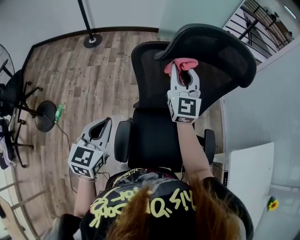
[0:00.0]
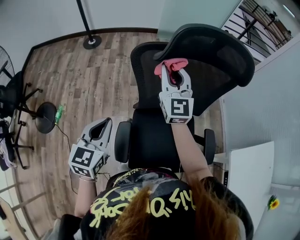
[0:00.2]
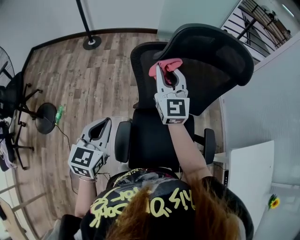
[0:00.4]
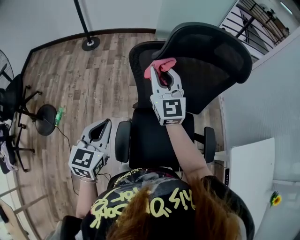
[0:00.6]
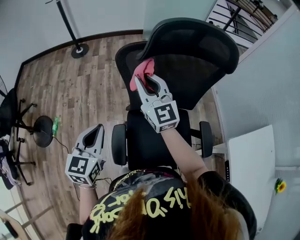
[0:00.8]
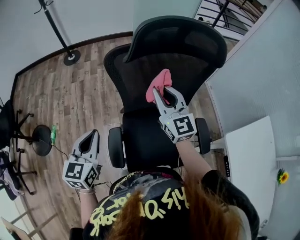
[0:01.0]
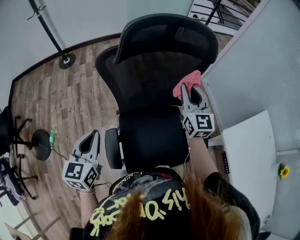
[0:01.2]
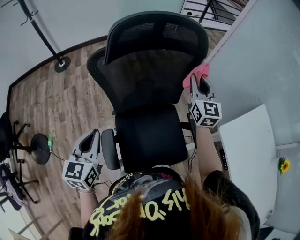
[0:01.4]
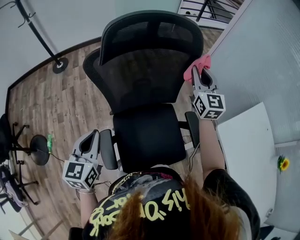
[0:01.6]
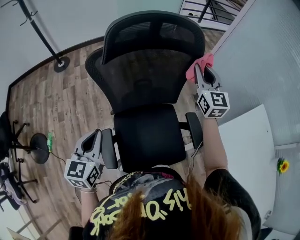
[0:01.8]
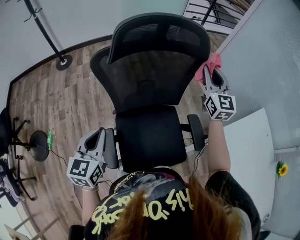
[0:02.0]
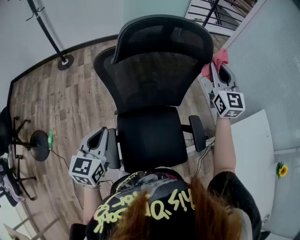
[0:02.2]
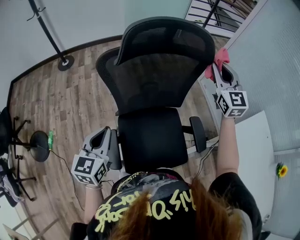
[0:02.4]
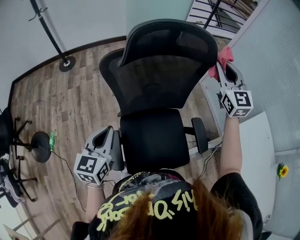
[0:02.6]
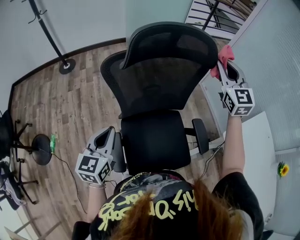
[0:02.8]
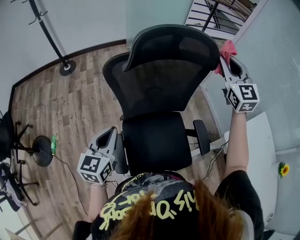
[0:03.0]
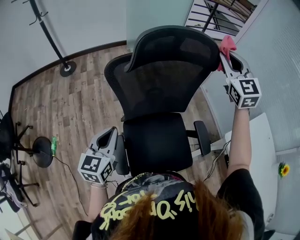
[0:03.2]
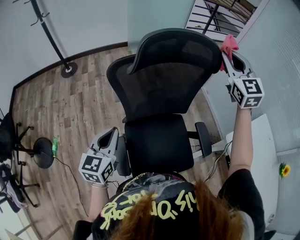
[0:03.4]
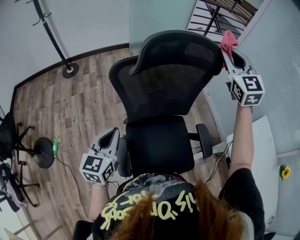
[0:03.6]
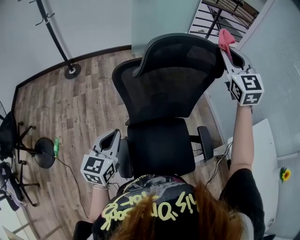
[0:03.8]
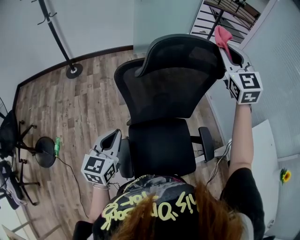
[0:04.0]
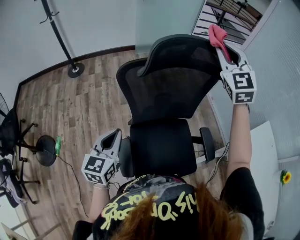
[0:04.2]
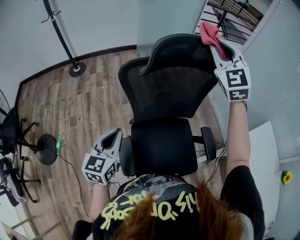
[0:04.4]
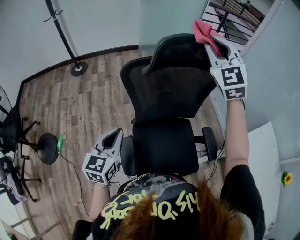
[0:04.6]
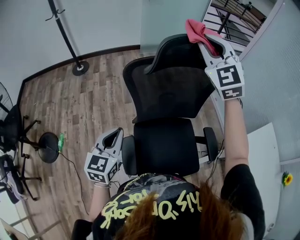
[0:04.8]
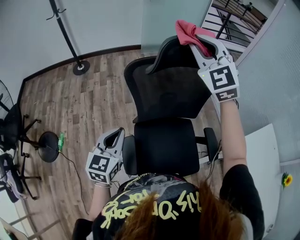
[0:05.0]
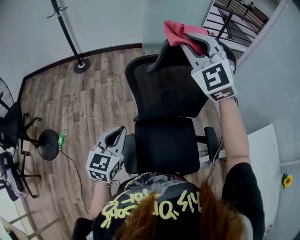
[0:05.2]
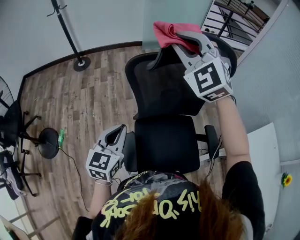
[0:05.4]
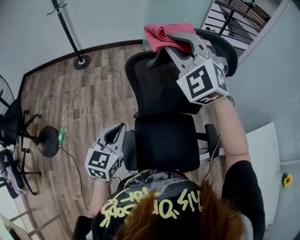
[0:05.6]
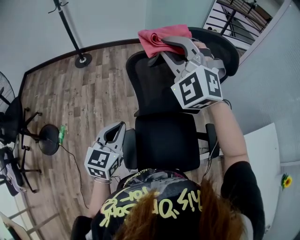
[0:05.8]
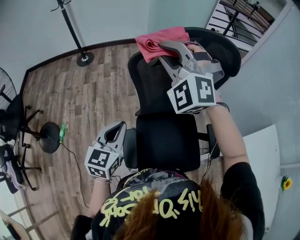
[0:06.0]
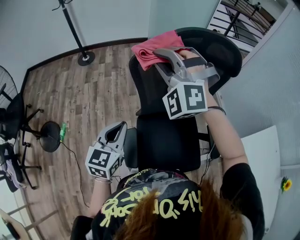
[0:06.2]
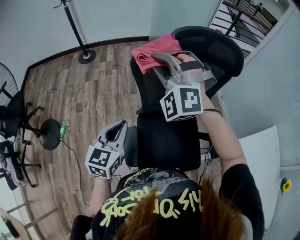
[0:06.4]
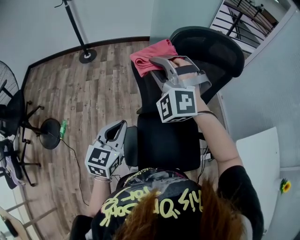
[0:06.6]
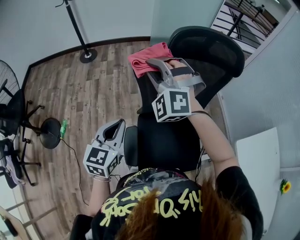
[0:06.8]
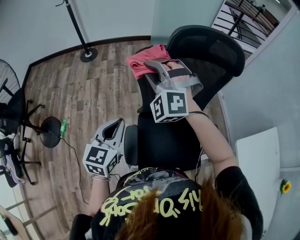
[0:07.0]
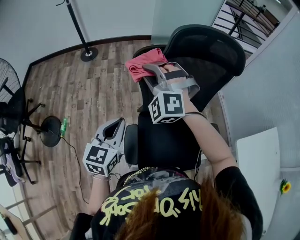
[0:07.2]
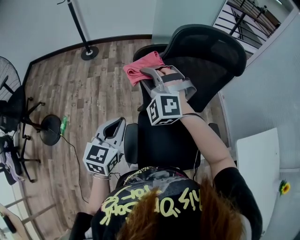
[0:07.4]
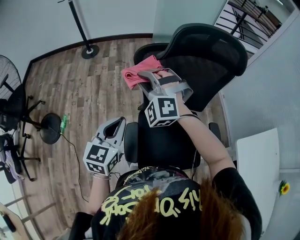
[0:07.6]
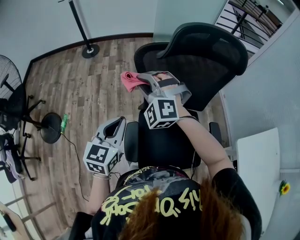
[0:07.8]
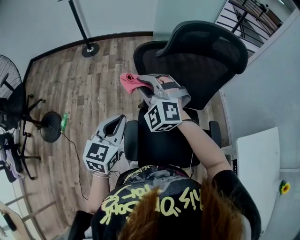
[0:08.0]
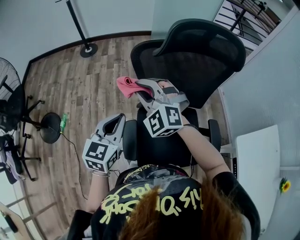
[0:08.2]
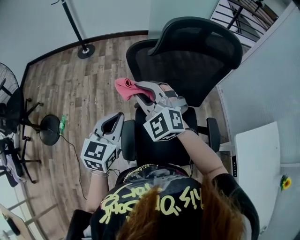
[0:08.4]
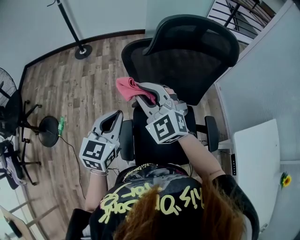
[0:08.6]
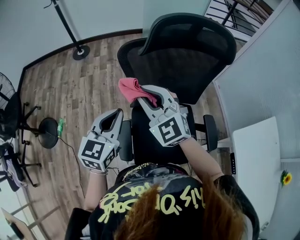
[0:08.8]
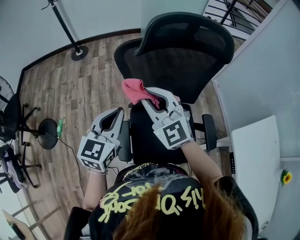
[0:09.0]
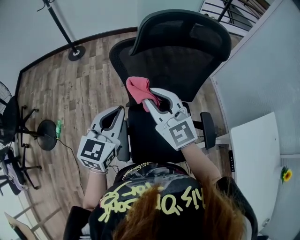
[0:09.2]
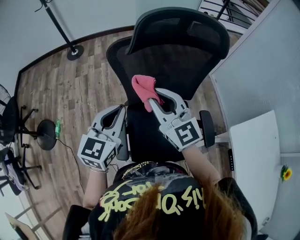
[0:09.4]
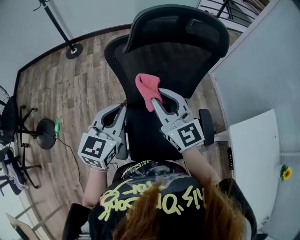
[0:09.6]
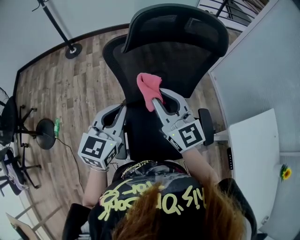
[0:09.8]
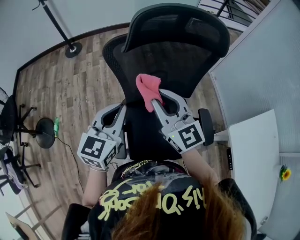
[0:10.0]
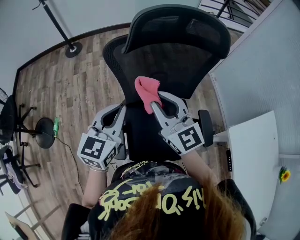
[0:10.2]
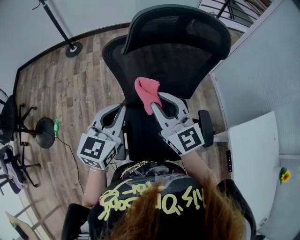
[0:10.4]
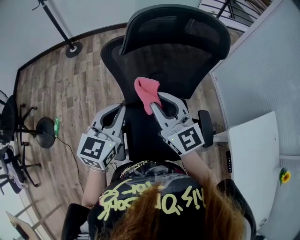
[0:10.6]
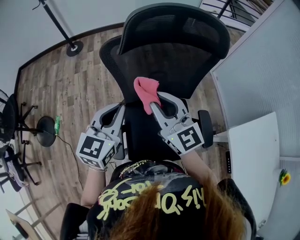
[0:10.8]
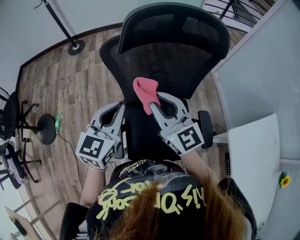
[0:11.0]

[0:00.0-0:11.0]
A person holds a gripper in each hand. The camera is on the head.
0:00.0 to 0:01.6: The left gripper heads to the right, covering some 5 cm. The right gripper goes approximately 25 cm to the right.
0:01.6 to 0:03.2: The right gripper shifts approximately 15 cm upward, and turns by about 20 degrees.
0:03.2 to 0:04.8: The right gripper travels to the left by some 15 cm.
0:04.8 to 0:06.2: The right gripper heads to the left and downward, covering some 20 cm, and rotates some 40 degrees.
0:06.2 to 0:07.8: The right gripper goes approximately 15 cm downward and to the left.
0:07.8 to 0:09.4: The left gripper is displaced to the right by roughly 10 cm. Meanwhile the right gripper is displaced to the right and backward by roughly 15 cm, and twists some 60 degrees clockwise, seen from behind.
0:09.4 to 0:11.0: There are only small adjustments of the grippers.

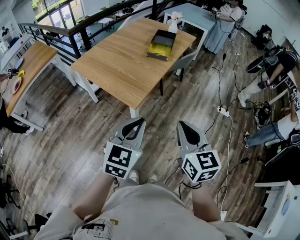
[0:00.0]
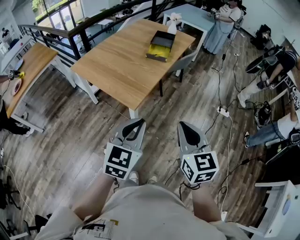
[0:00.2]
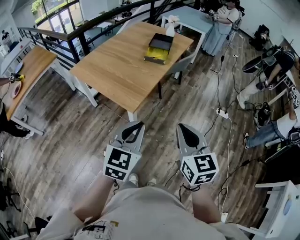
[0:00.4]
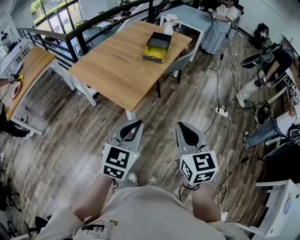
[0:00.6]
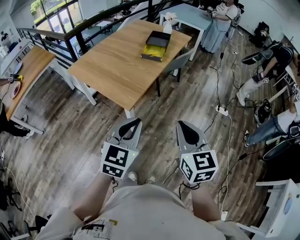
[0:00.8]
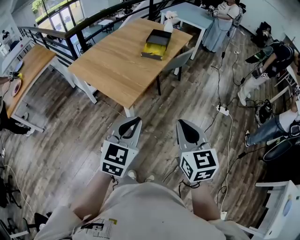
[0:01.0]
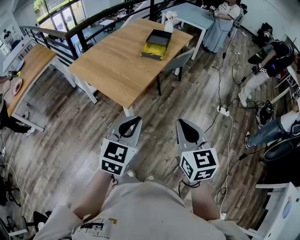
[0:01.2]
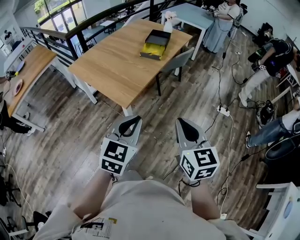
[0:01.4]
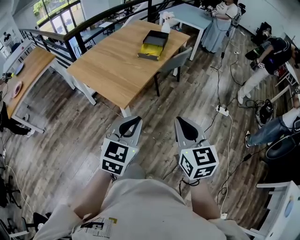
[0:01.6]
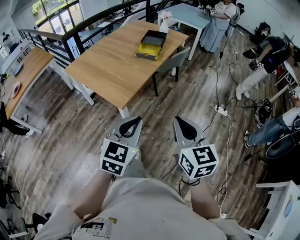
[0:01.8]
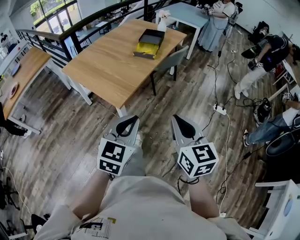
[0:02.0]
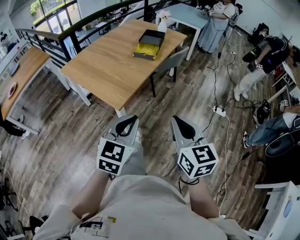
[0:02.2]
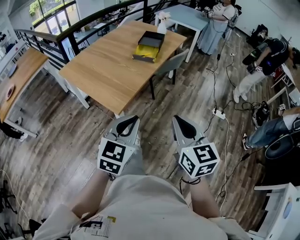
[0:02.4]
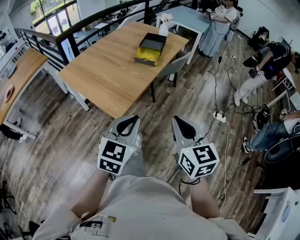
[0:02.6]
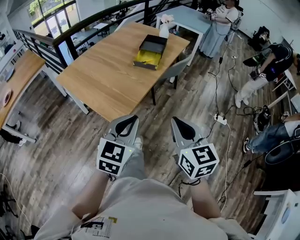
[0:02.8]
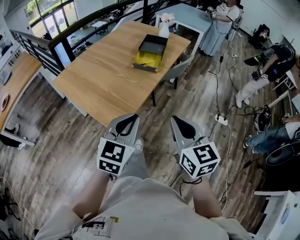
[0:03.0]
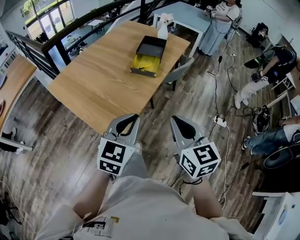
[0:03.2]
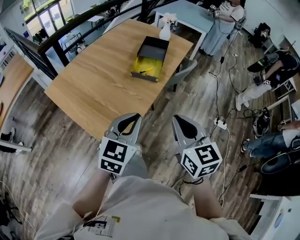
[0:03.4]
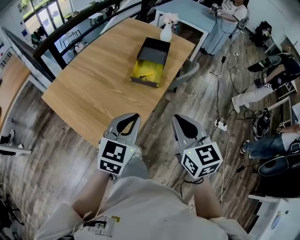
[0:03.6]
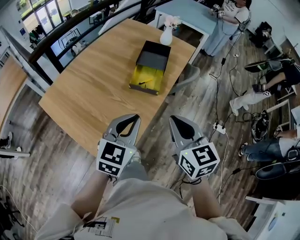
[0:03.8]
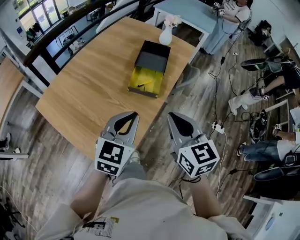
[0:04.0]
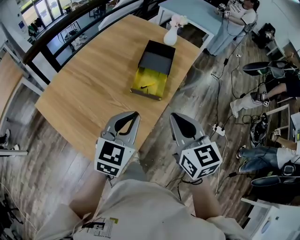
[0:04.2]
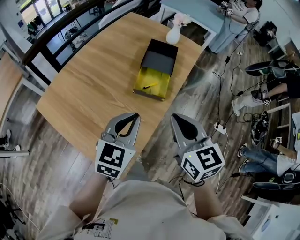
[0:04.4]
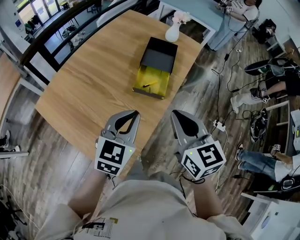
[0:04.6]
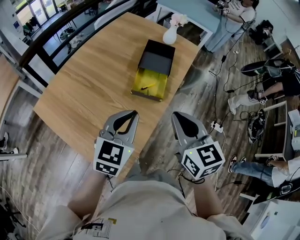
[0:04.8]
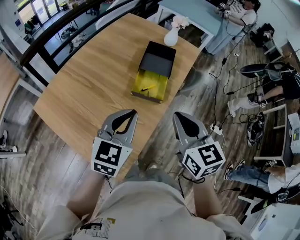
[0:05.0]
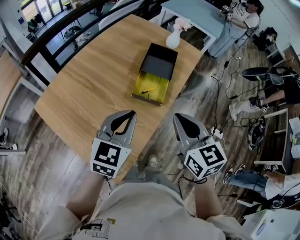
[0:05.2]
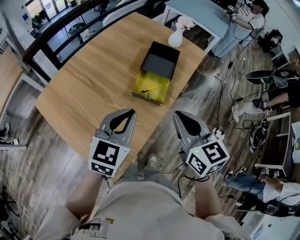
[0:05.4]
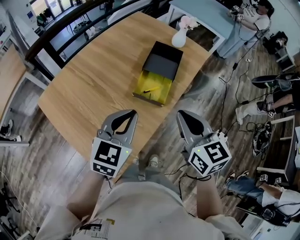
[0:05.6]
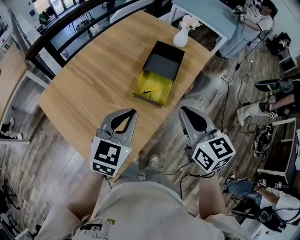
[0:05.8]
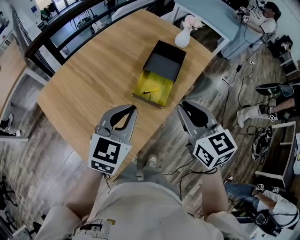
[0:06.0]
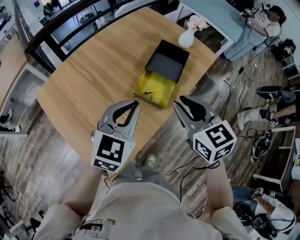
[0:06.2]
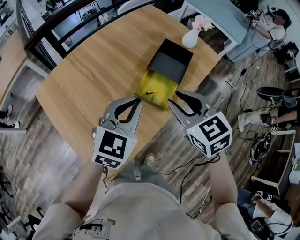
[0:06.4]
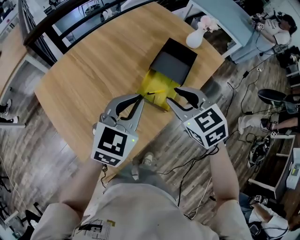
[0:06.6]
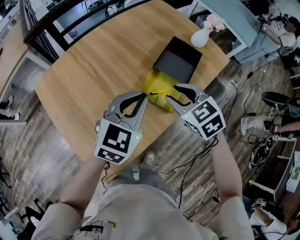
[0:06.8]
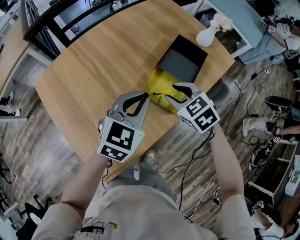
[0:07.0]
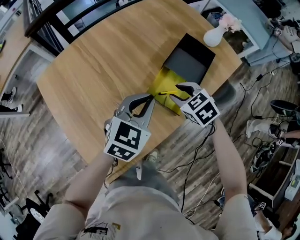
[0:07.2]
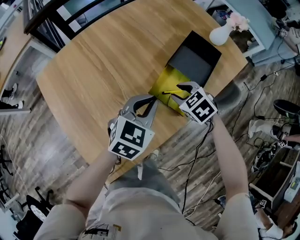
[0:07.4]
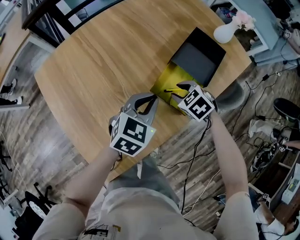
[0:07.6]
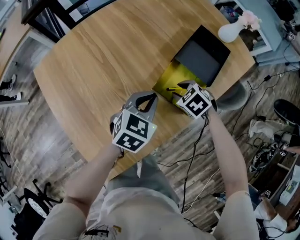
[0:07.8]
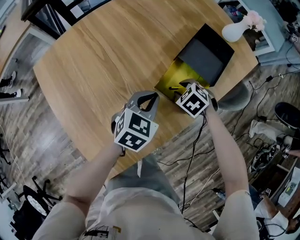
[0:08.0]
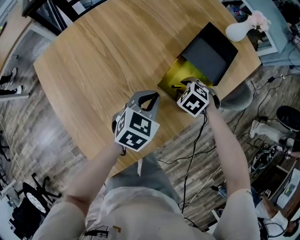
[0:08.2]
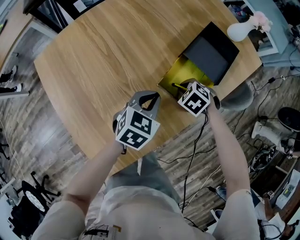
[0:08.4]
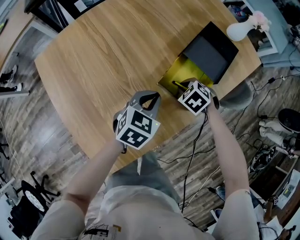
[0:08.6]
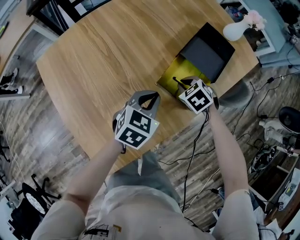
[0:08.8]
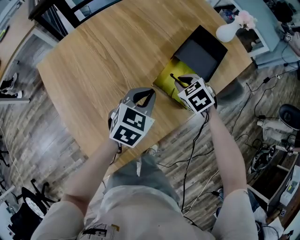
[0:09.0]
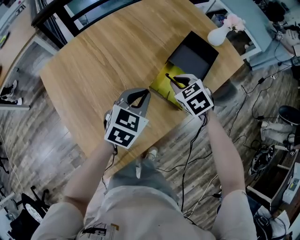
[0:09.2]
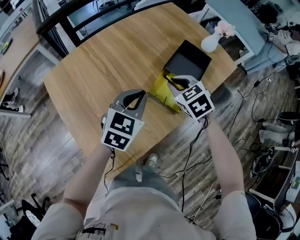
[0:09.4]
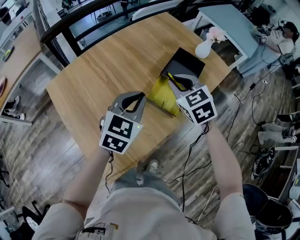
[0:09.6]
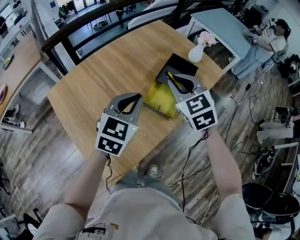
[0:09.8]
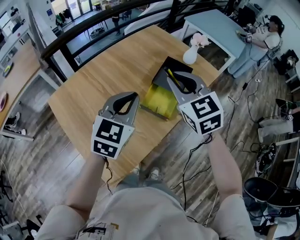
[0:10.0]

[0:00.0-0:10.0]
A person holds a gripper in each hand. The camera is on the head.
0:00.0 to 0:01.4: Both grippers travel together to the right, about 10 cm.
0:01.4 to 0:02.8: Both grippers travel together forward, approximately 15 cm.
0:02.8 to 0:04.2: The two grippers travel together, forward, some 40 cm.
0:04.2 to 0:05.8: The grippers both shift forward by some 10 cm.
0:05.8 to 0:07.2: The left gripper moves forward and downward, approximately 20 cm. Meanwhile the right gripper moves downward and forward, some 30 cm, points its fingers roughly 40 degrees further downward, and opens.
0:07.2 to 0:08.6: The two grippers go approximately 15 cm downward. The right gripper changes its angle by approximately 20 degrees, and closes its fingers.
0:08.6 to 0:10.0: Both grippers travel together upward, roughly 40 cm. The right gripper tips its fingers upward by roughly 50 degrees. The left gripper rotates roughly 30 degrees.

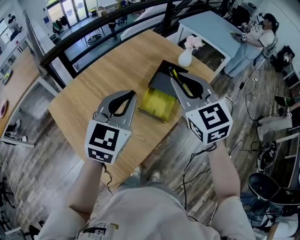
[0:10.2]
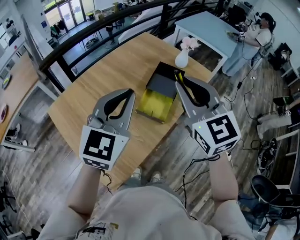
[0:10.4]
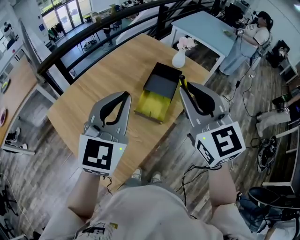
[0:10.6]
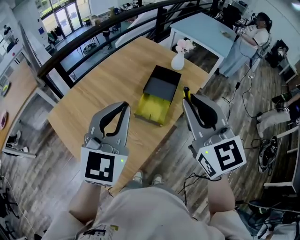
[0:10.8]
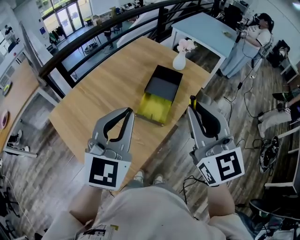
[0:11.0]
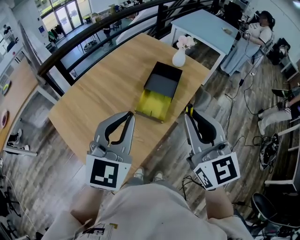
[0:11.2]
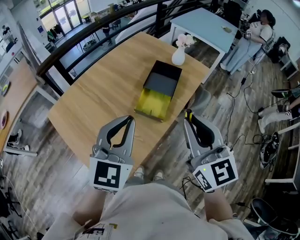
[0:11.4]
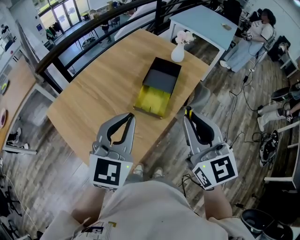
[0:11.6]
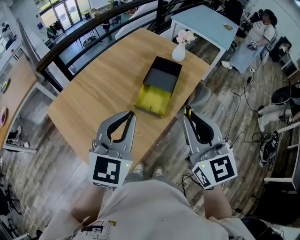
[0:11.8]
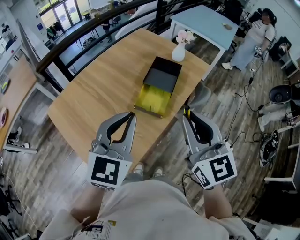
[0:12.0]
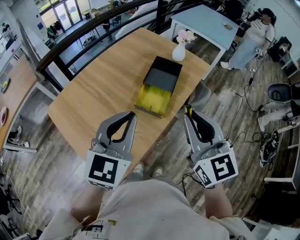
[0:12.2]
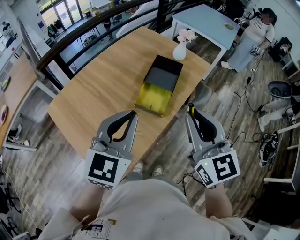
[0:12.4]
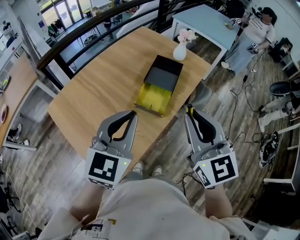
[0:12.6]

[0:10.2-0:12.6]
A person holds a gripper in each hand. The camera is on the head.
0:10.2 to 0:11.4: The right gripper heads backward and to the right, covering some 15 cm; the left gripper is displaced backward by roughly 10 cm.
0:11.4 to 0:12.6: There are only small adjustments of the grippers.
